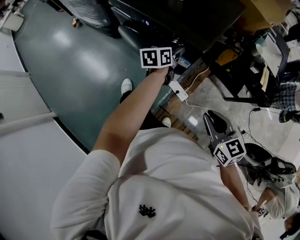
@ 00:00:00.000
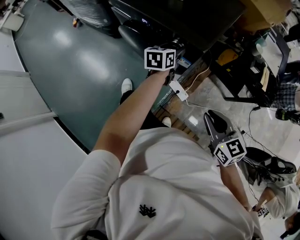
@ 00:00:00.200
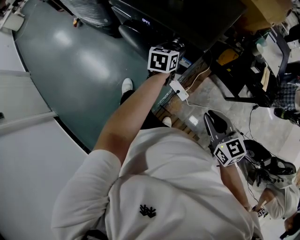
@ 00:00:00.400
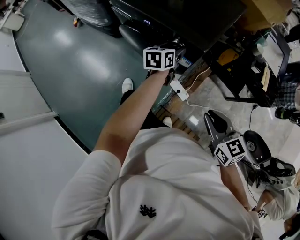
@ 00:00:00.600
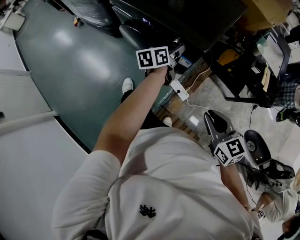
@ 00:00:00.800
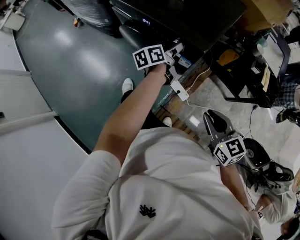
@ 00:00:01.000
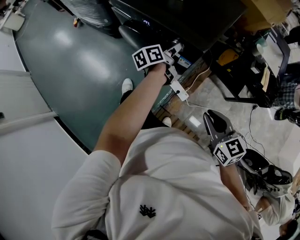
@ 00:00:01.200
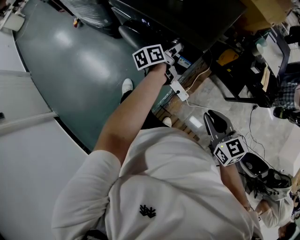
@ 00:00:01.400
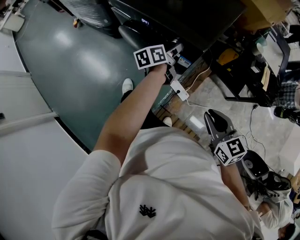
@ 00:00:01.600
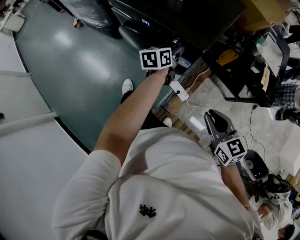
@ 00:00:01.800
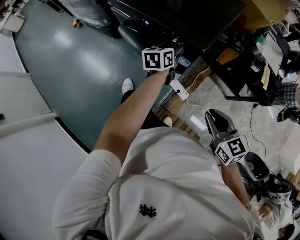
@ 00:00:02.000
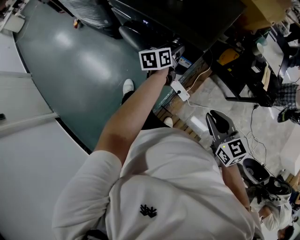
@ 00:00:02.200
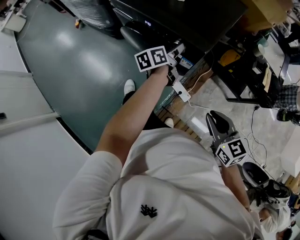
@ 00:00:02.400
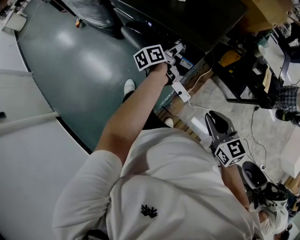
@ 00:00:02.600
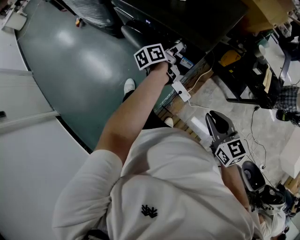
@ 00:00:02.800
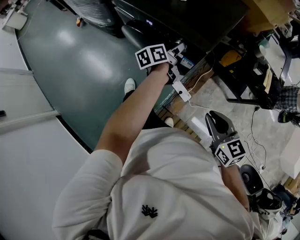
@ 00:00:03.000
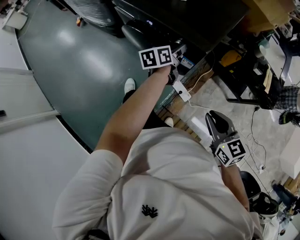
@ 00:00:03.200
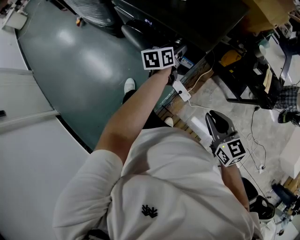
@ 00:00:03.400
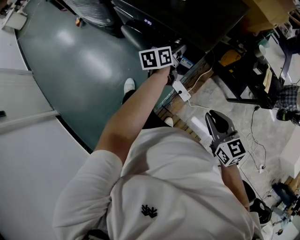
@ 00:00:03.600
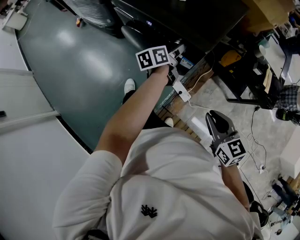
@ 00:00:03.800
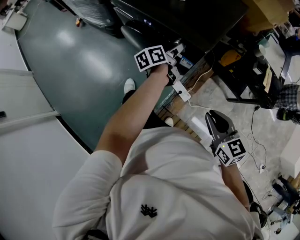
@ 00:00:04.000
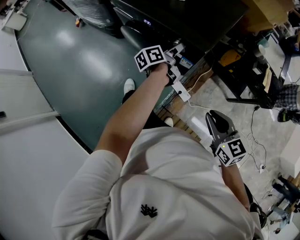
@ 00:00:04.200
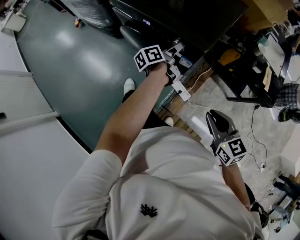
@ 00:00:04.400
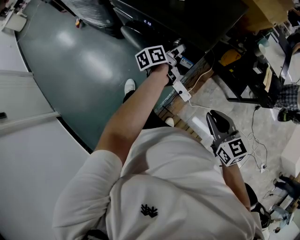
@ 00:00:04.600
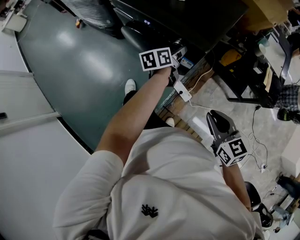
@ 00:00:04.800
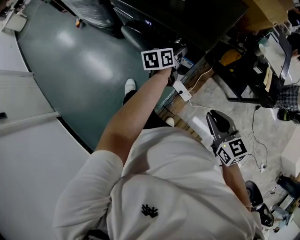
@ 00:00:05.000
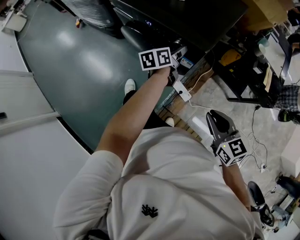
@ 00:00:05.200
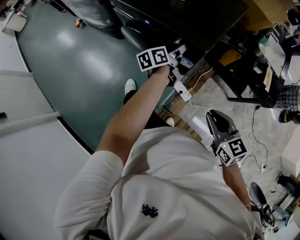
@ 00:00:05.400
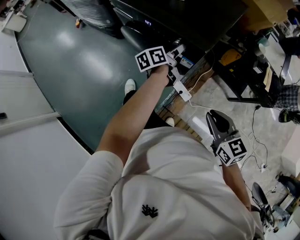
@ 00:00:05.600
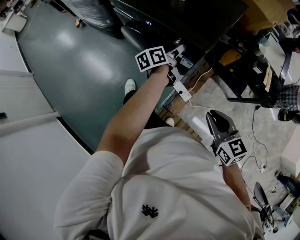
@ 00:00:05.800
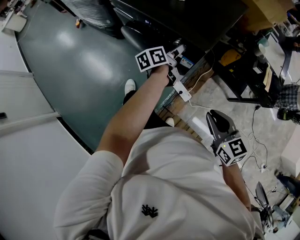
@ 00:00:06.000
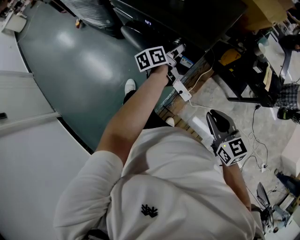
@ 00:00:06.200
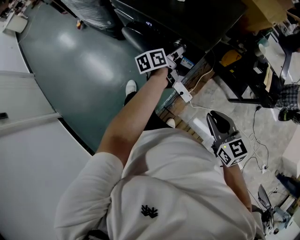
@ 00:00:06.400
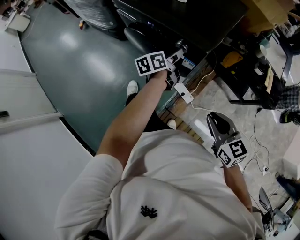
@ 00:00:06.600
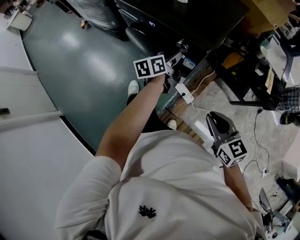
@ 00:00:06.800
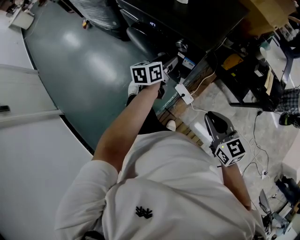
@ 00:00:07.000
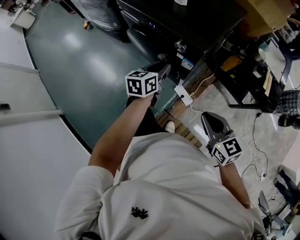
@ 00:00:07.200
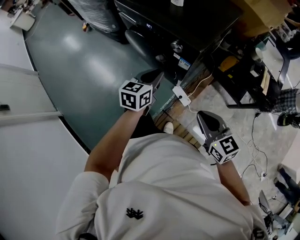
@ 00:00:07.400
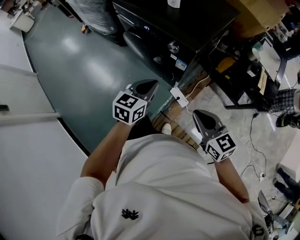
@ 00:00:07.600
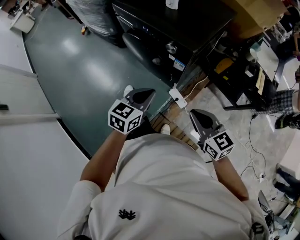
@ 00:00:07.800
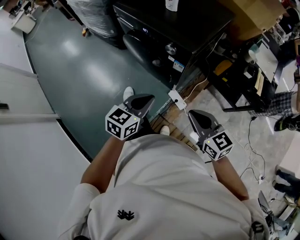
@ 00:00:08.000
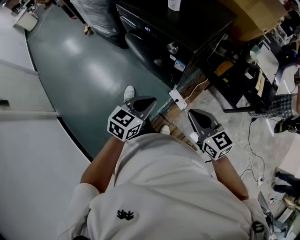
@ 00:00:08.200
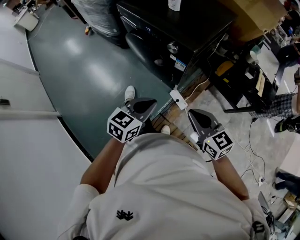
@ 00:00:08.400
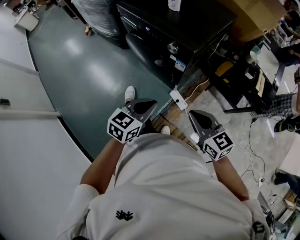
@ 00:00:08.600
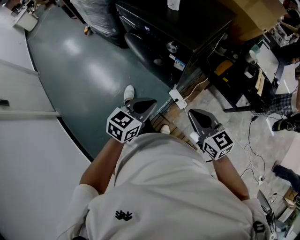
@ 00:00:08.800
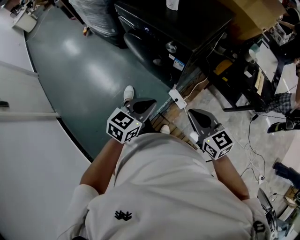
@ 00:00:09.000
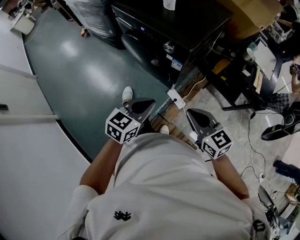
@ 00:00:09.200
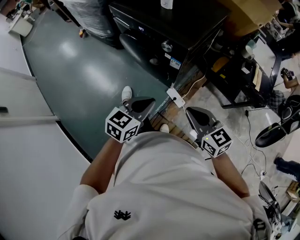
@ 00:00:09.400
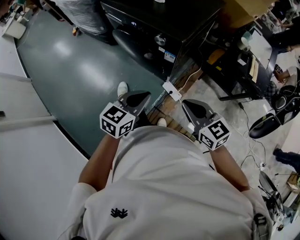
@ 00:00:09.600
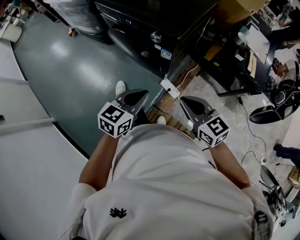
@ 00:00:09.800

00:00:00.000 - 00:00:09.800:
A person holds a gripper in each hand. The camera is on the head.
00:00:00.000 - 00:00:01.400: The left gripper swivels approximately 20 degrees.
00:00:05.600 - 00:00:07.000: The left gripper moves backward, some 5 cm, and rotates about 20 degrees.
00:00:07.000 - 00:00:08.400: The left gripper goes approximately 25 cm backward, turns by roughly 30 degrees, and closes its fingers.
00:00:08.400 - 00:00:09.800: There are only small adjustments of the grippers.

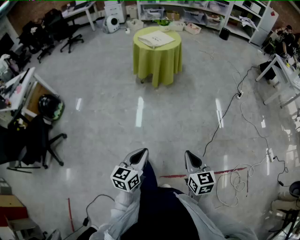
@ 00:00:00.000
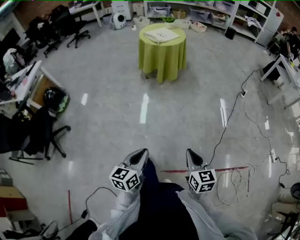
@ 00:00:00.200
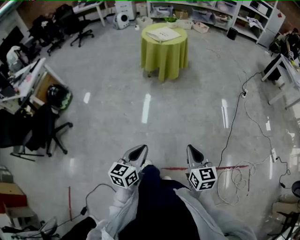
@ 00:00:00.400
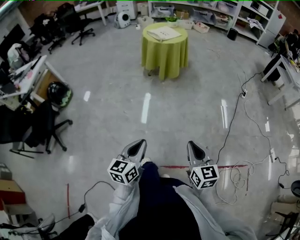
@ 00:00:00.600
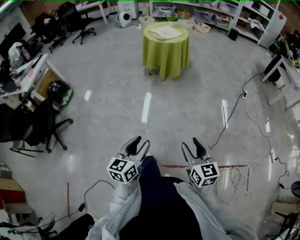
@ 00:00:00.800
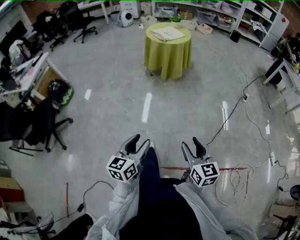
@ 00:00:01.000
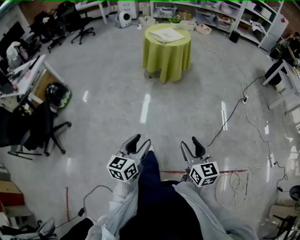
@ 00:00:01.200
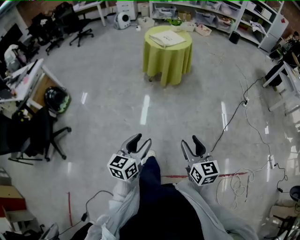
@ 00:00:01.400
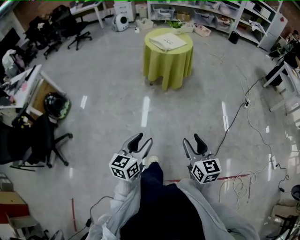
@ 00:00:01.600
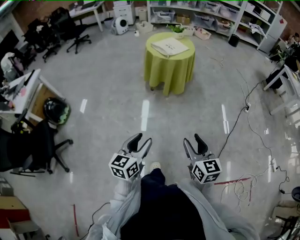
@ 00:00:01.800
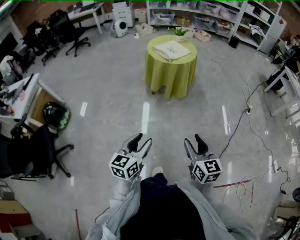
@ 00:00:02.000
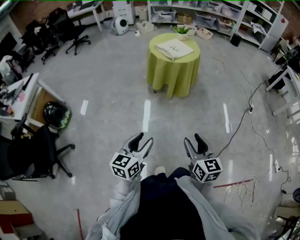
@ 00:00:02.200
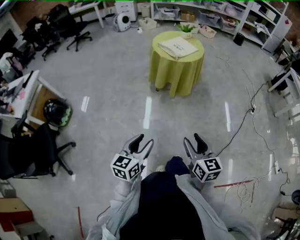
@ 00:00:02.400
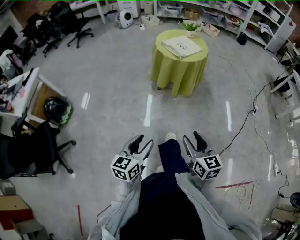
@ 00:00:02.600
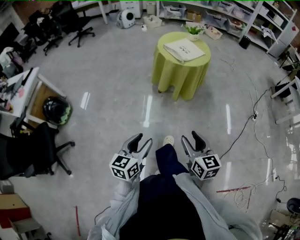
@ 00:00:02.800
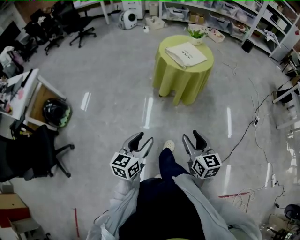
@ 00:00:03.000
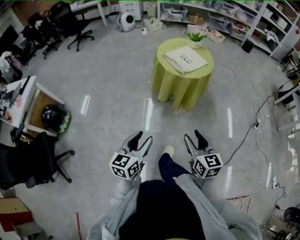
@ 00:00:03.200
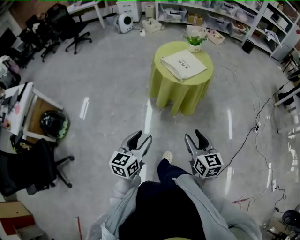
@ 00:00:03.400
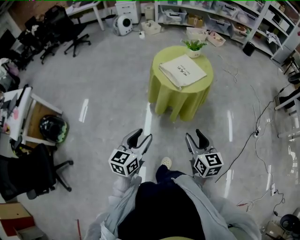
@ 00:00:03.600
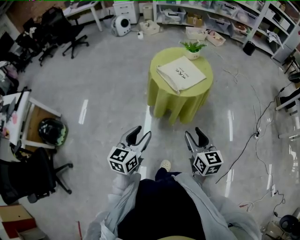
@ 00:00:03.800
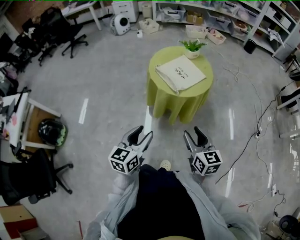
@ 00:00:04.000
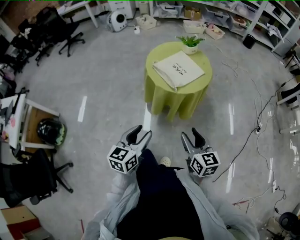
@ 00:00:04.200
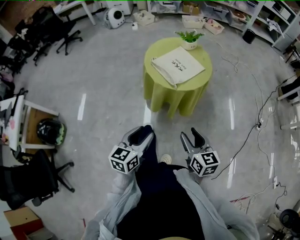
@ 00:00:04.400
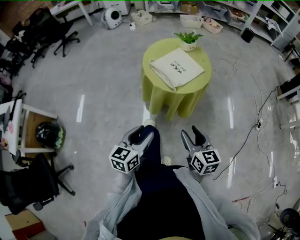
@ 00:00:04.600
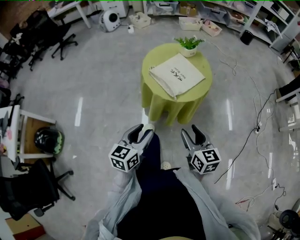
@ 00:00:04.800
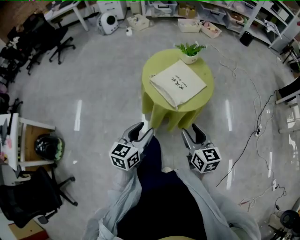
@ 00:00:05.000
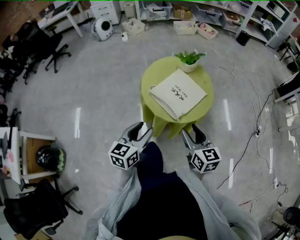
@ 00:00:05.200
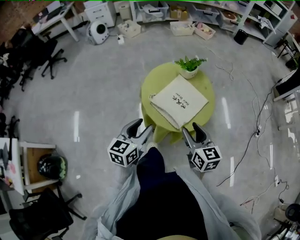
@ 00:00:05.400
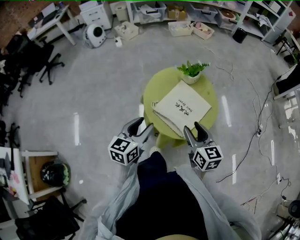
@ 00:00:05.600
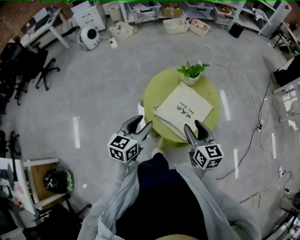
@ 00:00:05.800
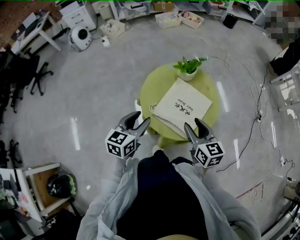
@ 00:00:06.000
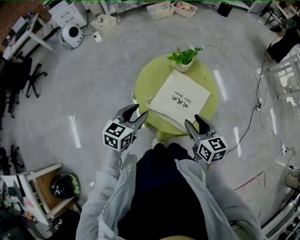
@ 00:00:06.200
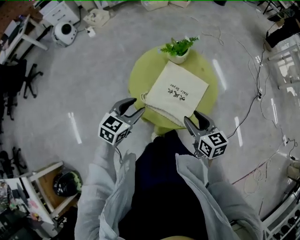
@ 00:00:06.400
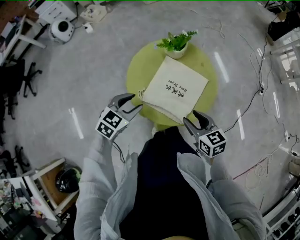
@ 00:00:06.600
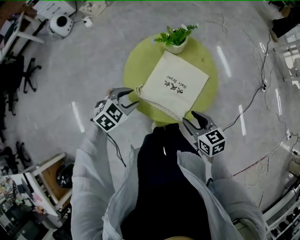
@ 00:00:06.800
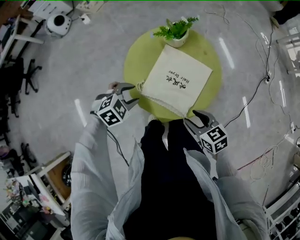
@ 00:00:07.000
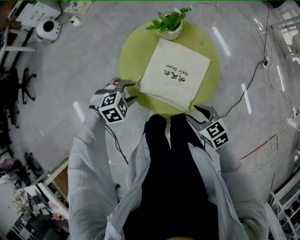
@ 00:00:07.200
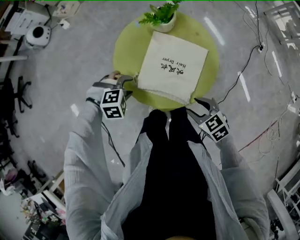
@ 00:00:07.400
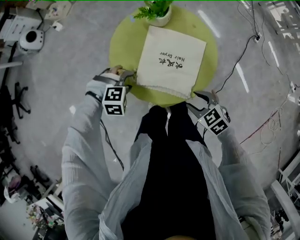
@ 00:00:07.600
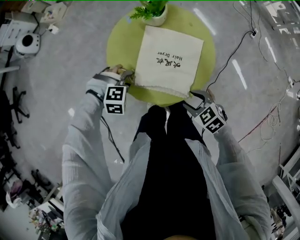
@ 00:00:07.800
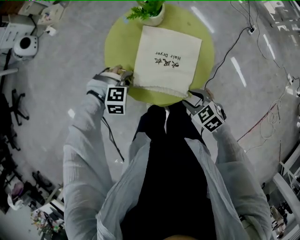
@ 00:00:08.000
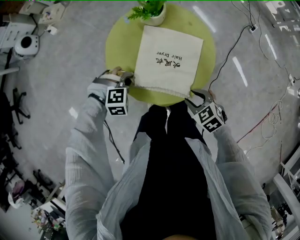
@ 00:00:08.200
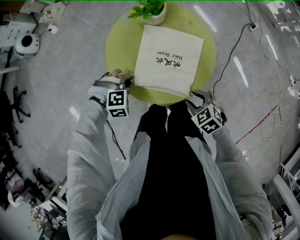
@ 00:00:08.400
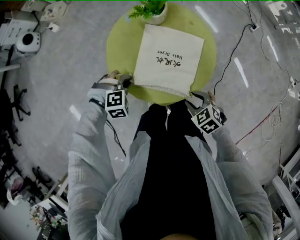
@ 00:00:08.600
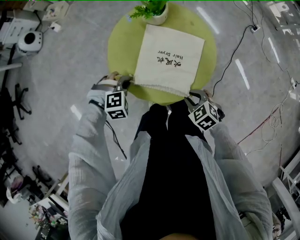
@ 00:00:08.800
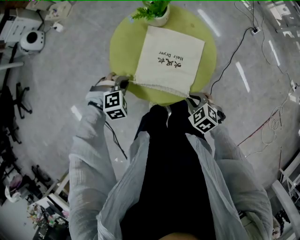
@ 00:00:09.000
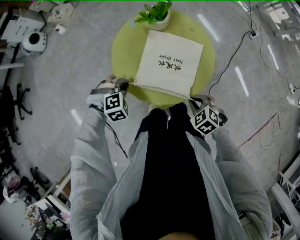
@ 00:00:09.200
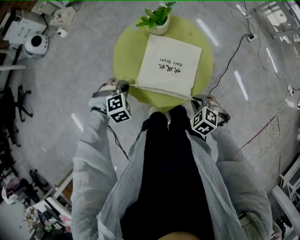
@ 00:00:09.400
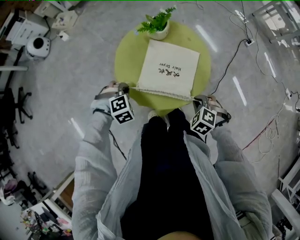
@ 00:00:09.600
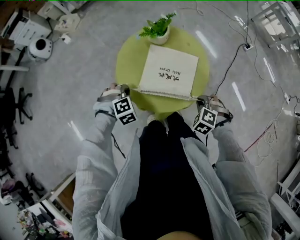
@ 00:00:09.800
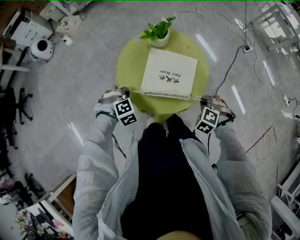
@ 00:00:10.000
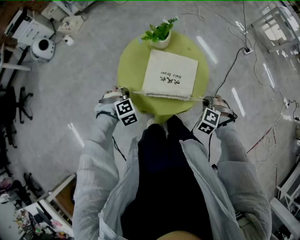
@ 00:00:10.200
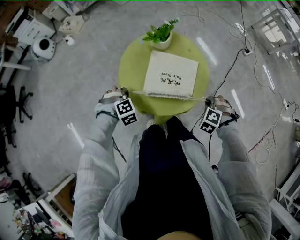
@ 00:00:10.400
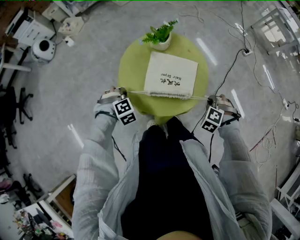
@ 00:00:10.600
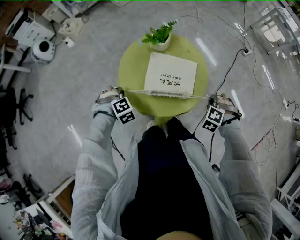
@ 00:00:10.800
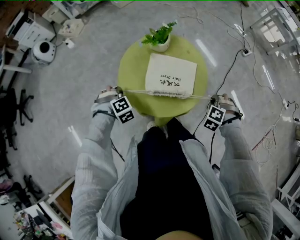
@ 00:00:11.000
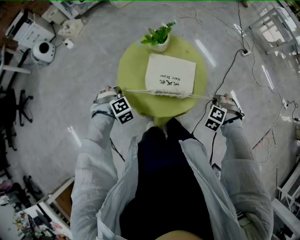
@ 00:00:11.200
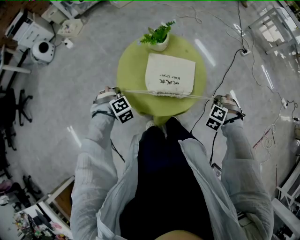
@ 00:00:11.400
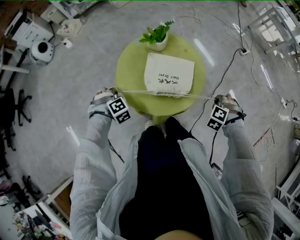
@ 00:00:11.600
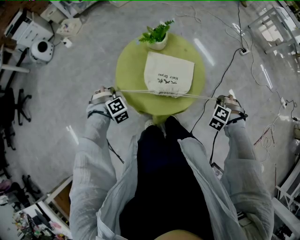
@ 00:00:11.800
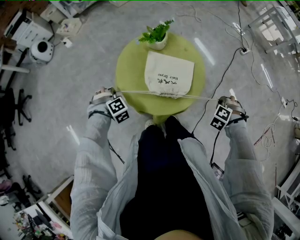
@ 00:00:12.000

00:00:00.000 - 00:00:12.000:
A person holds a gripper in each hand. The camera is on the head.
00:00:00.000 - 00:00:01.600: The right gripper goes some 15 cm forward, upward and to the left, and opens; the left gripper heads forward and to the left, covering about 10 cm, and opens up.
00:00:01.600 - 00:00:03.000: The two grippers go approximately 25 cm forward and to the left.
00:00:03.000 - 00:00:04.400: The grippers both shift forward by about 25 cm.
00:00:04.400 - 00:00:06.000: Both grippers travel together forward, roughly 35 cm.
00:00:06.000 - 00:00:07.600: The left gripper heads downward, covering approximately 15 cm, and rolls clockwise, seen from behind, by about 90 degrees. The right gripper travels downward and backward by approximately 15 cm, and tips its fingers downward by some 30 degrees.
00:00:07.600 - 00:00:09.000: The left gripper closes up. The right gripper closes.
00:00:09.000 - 00:00:10.400: The right gripper travels to the right and forward by approximately 10 cm, and swivels roughly 40 degrees.
00:00:10.400 - 00:00:12.000: The right gripper goes roughly 10 cm to the right. The left gripper heads to the left, covering about 5 cm.

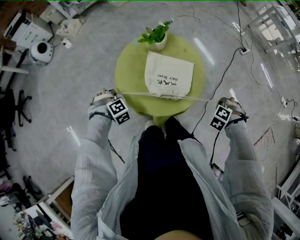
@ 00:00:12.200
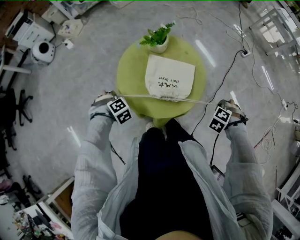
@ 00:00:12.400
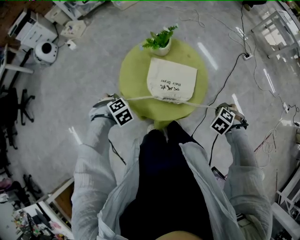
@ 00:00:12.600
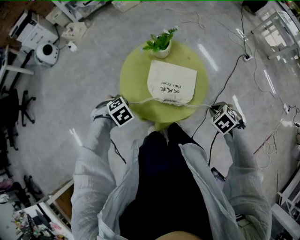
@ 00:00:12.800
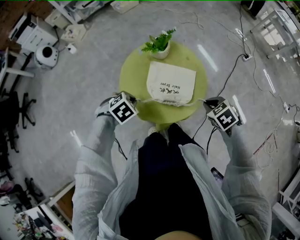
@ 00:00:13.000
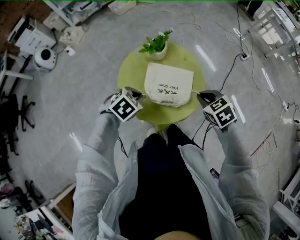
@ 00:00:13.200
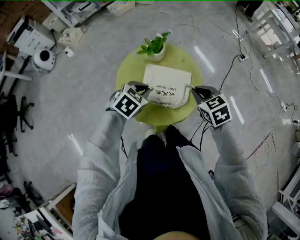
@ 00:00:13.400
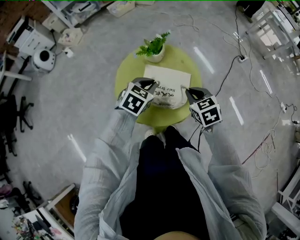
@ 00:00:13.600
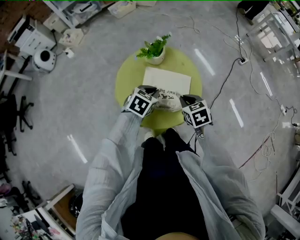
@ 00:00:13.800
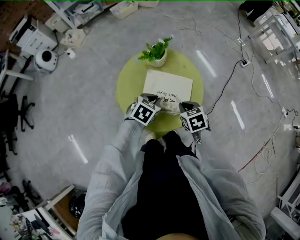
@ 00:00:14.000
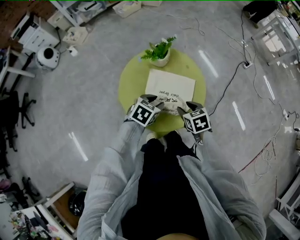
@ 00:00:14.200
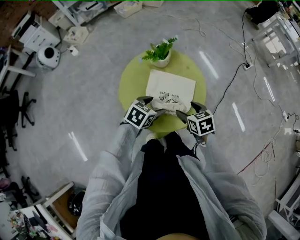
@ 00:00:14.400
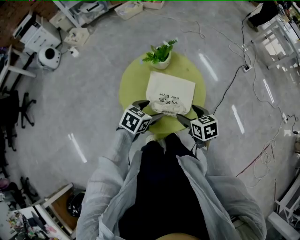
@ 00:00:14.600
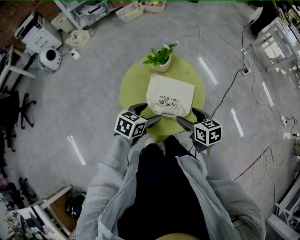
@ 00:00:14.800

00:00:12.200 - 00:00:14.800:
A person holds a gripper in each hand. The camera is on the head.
00:00:12.200 - 00:00:13.400: The left gripper changes place by some 25 cm, and rotates some 60 degrees. Meanwhile the right gripper moves approximately 25 cm, and swivels approximately 60 degrees.
00:00:13.400 - 00:00:14.800: The left gripper changes its angle by approximately 30 degrees, and opens up, while the right gripper rotates approximately 30 degrees, and opens up.
